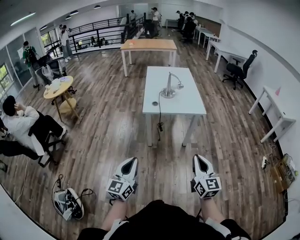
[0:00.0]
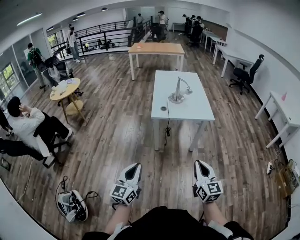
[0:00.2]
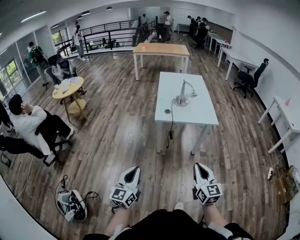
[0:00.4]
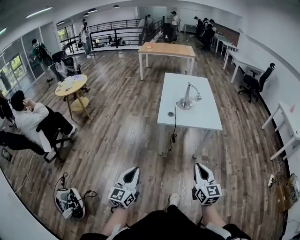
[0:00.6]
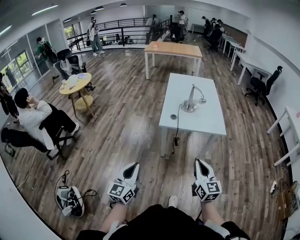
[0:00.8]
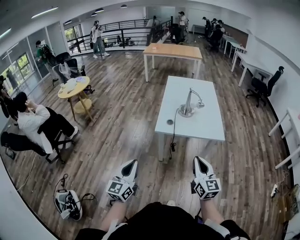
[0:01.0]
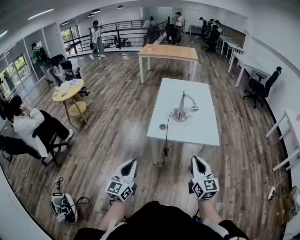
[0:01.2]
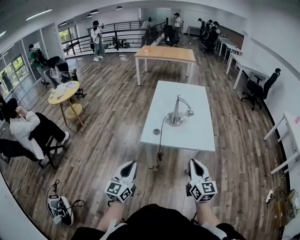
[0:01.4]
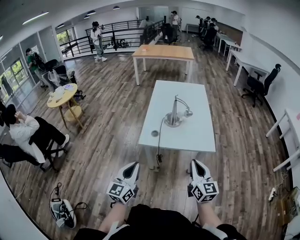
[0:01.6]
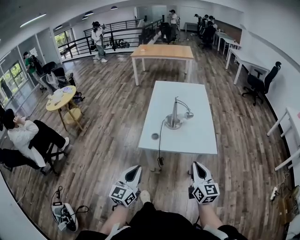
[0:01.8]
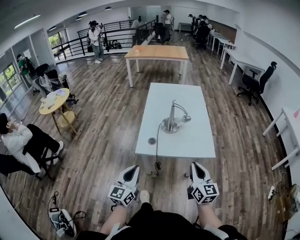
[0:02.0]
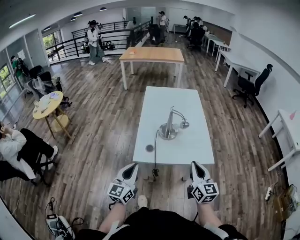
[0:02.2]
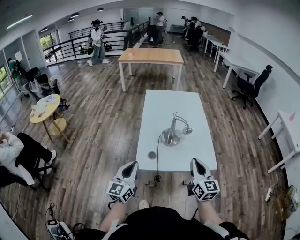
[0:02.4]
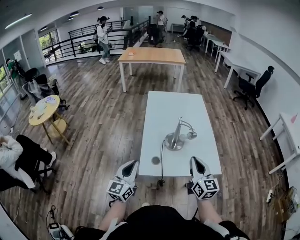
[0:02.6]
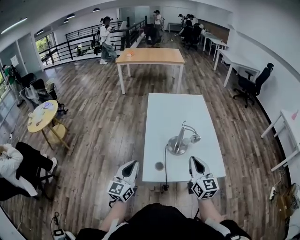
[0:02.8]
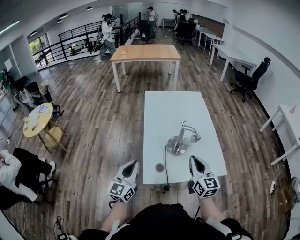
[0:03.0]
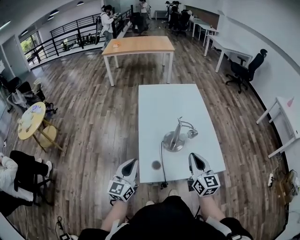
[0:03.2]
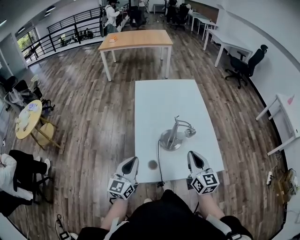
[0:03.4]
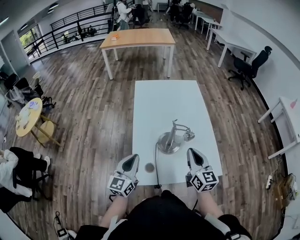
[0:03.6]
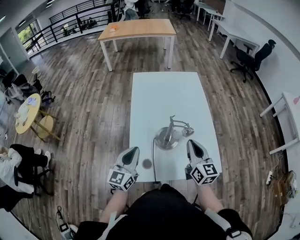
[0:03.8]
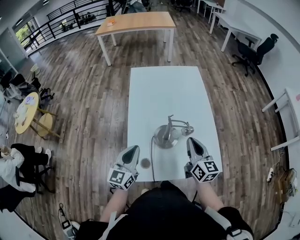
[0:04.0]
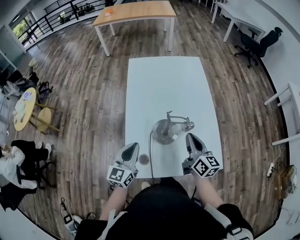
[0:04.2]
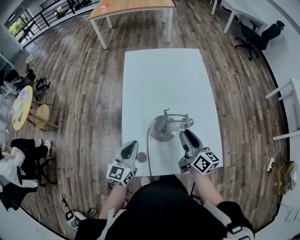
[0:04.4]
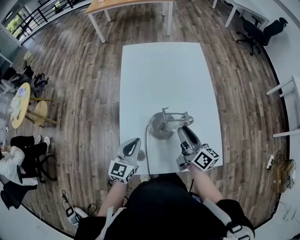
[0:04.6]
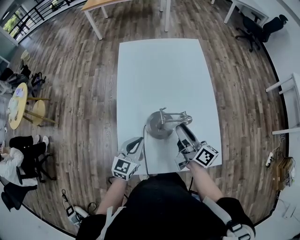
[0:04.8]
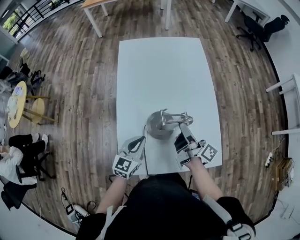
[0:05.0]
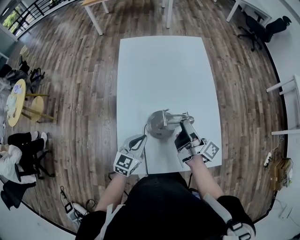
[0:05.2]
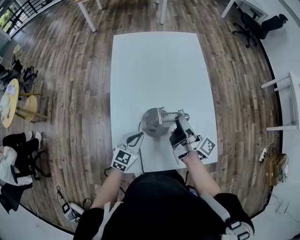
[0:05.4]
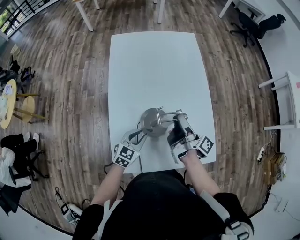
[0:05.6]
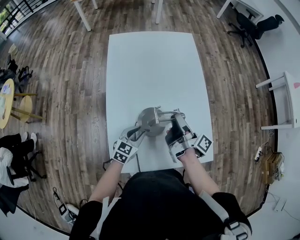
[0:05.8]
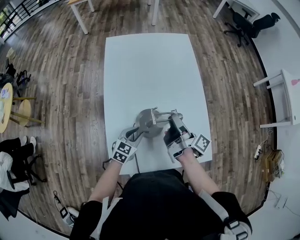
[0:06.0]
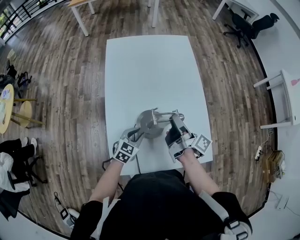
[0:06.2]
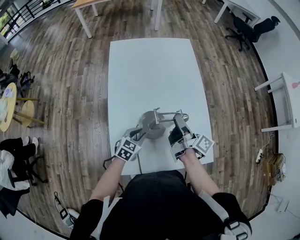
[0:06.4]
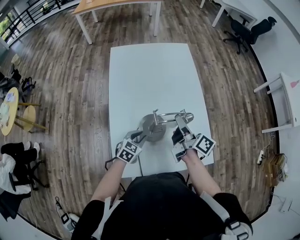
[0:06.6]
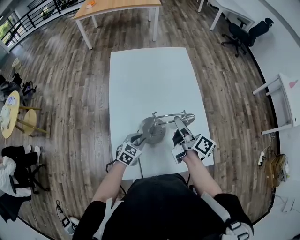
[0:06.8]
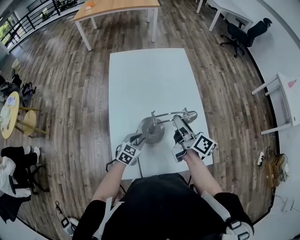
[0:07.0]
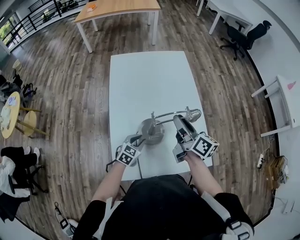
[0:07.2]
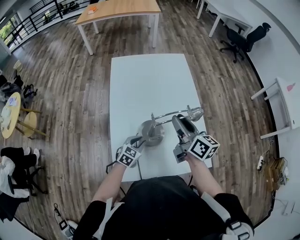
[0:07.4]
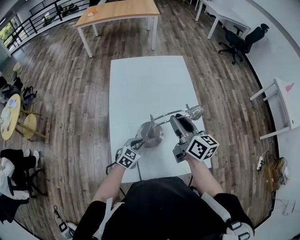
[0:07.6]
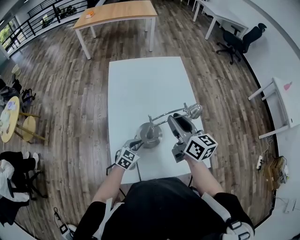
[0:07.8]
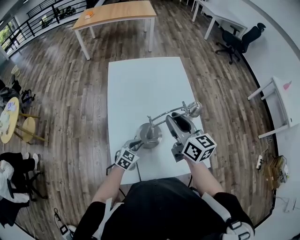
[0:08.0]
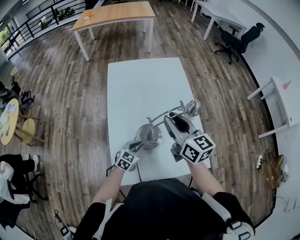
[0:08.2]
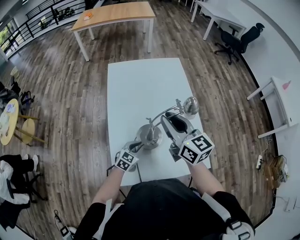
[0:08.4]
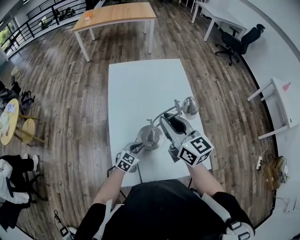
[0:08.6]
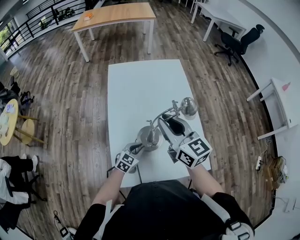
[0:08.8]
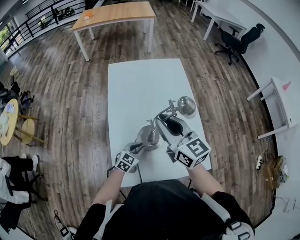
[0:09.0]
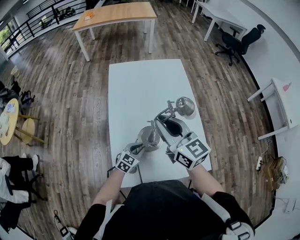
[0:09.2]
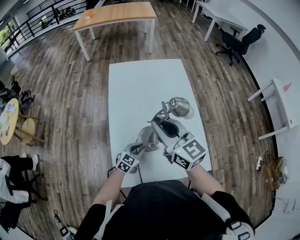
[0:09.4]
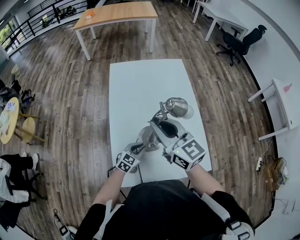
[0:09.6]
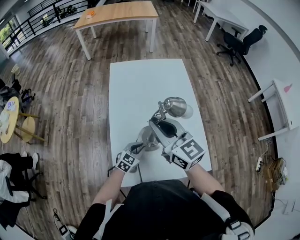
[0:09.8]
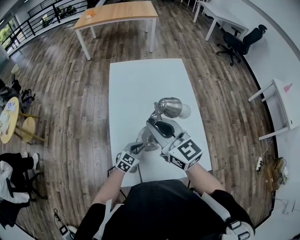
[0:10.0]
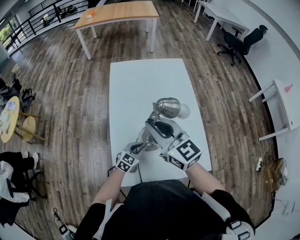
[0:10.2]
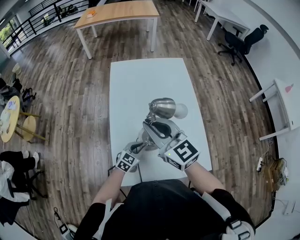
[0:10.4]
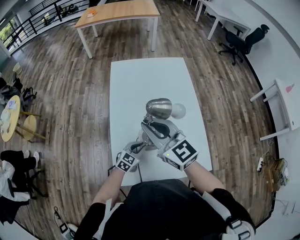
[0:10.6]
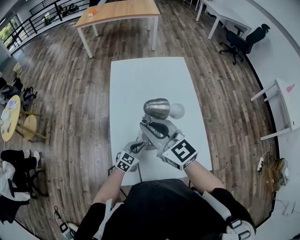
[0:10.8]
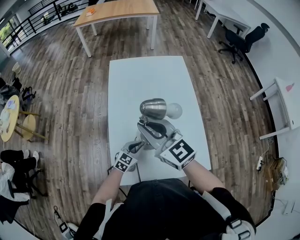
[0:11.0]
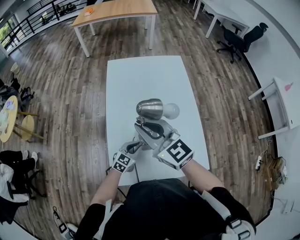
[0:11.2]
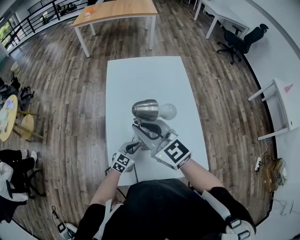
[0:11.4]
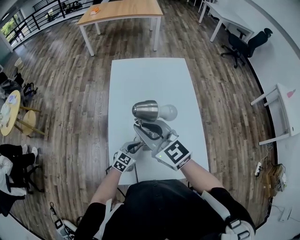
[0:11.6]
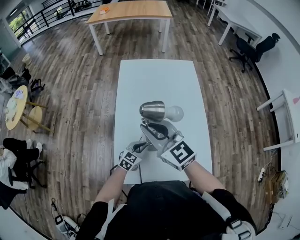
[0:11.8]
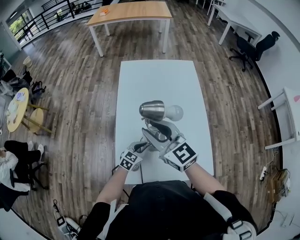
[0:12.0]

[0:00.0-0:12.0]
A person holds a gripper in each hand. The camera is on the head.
0:00.0 to 0:01.6: The grippers both shift forward by about 30 cm.
0:01.6 to 0:03.0: The grippers both shift forward by about 25 cm.
0:03.0 to 0:04.4: The left gripper shifts about 20 cm forward, to the right and downward. Meanwhile the right gripper travels forward and downward by roughly 15 cm, swivels roughly 30 degrees, and opens up.
0:04.4 to 0:06.0: The left gripper shifts about 15 cm downward and to the right, changes its angle by roughly 30 degrees, and opens its fingers. The right gripper travels forward by about 5 cm, and twists approximately 50 degrees clockwise, seen from behind.
0:06.0 to 0:07.6: The right gripper shifts roughly 10 cm upward, and rotates around the line of its fingers by roughly 60 degrees, counterclockwise from behind.
0:07.6 to 0:09.0: The right gripper goes roughly 10 cm to the left and upward, and rotates some 30 degrees.
0:09.0 to 0:10.4: The right gripper heads to the left, covering approximately 5 cm.
0:10.4 to 0:12.0: The grippers move only a little.

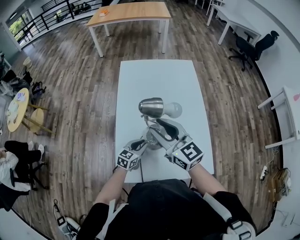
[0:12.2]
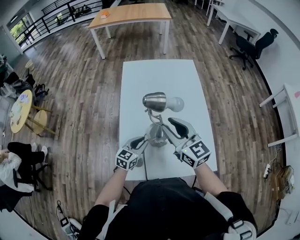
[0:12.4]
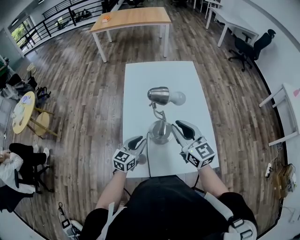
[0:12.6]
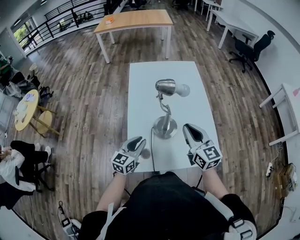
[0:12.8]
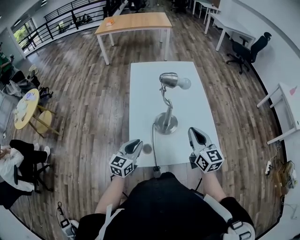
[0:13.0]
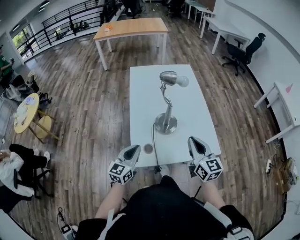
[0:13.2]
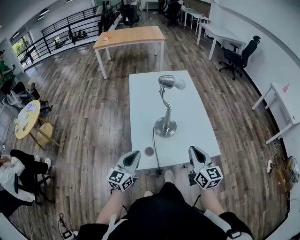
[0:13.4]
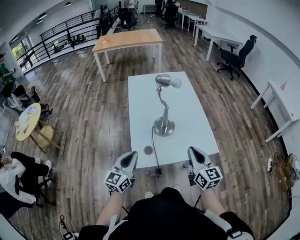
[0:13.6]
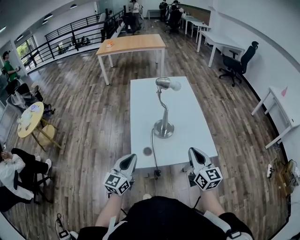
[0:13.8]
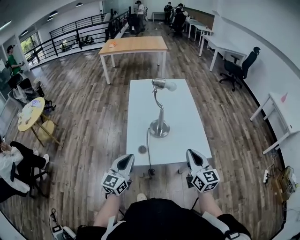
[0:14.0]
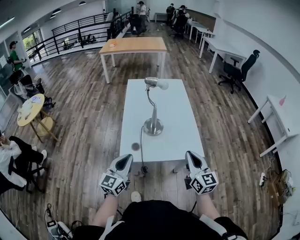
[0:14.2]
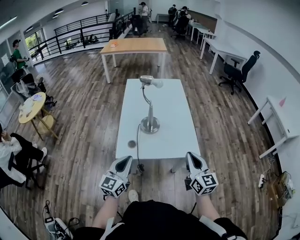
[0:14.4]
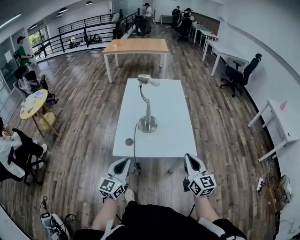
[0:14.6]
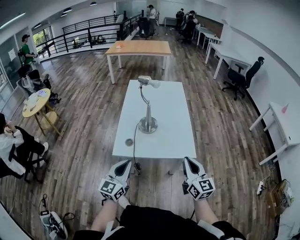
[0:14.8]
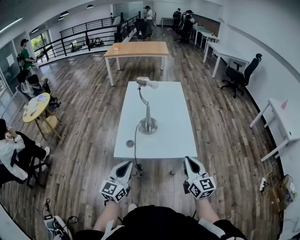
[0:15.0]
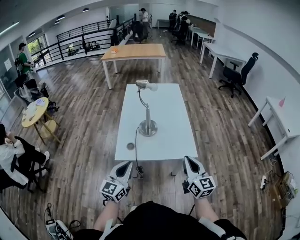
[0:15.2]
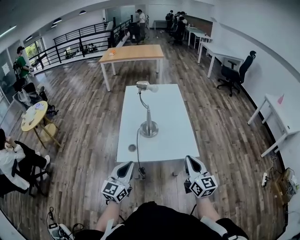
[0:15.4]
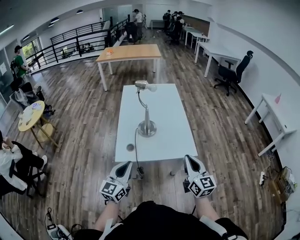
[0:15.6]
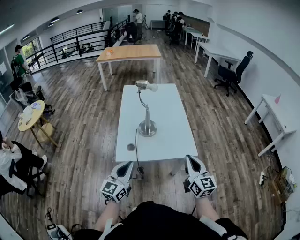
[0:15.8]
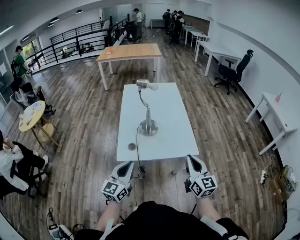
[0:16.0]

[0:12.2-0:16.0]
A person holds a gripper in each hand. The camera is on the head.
0:12.2 to 0:13.4: The left gripper shifts some 25 cm backward, upward and to the left, and turns by some 20 degrees. Meanwhile the right gripper heads backward and to the right, covering roughly 25 cm, turns by approximately 30 degrees, and closes.
0:13.4 to 0:14.8: The left gripper heads backward and to the right, covering some 20 cm, while the right gripper goes approximately 15 cm to the right and backward.
0:14.8 to 0:16.0: There are only small adjustments of the grippers.

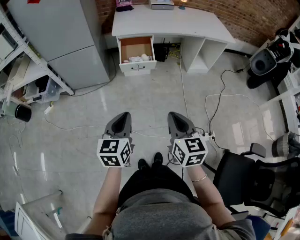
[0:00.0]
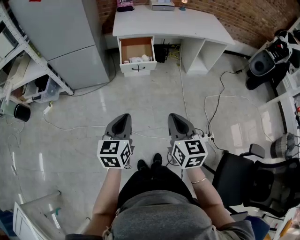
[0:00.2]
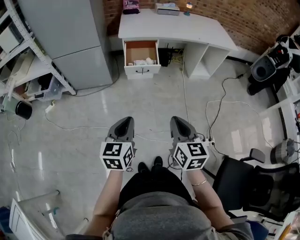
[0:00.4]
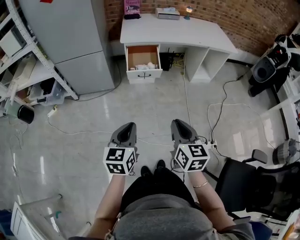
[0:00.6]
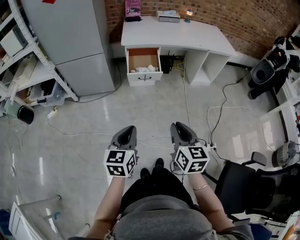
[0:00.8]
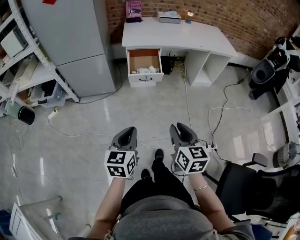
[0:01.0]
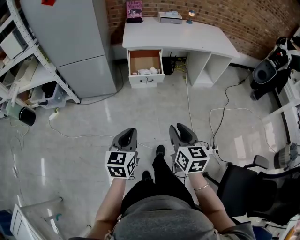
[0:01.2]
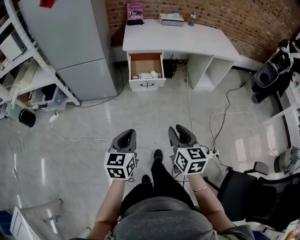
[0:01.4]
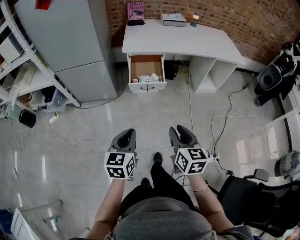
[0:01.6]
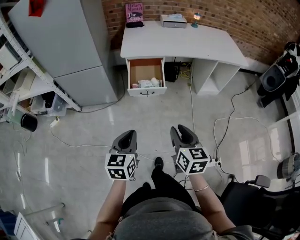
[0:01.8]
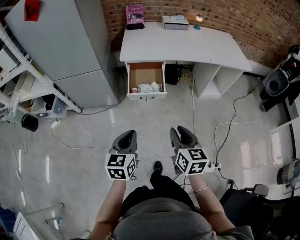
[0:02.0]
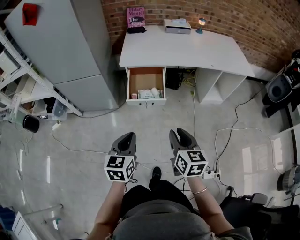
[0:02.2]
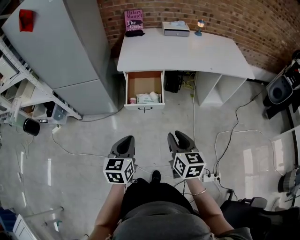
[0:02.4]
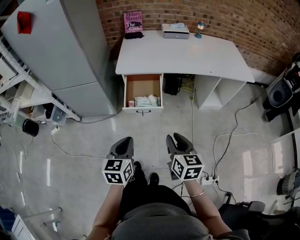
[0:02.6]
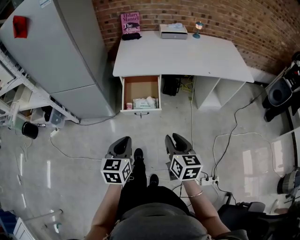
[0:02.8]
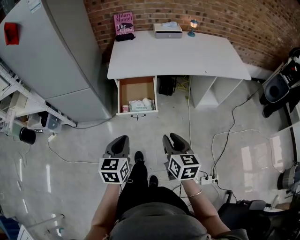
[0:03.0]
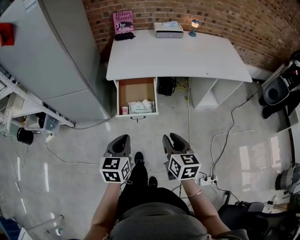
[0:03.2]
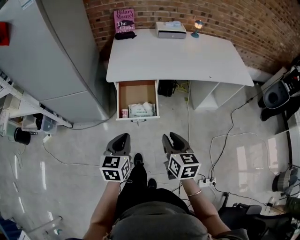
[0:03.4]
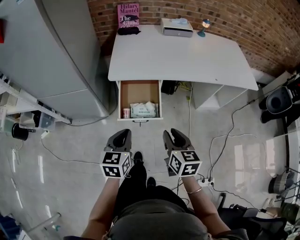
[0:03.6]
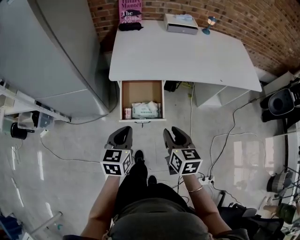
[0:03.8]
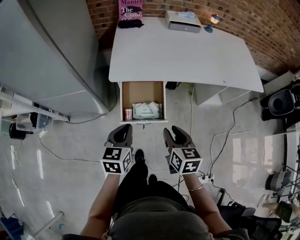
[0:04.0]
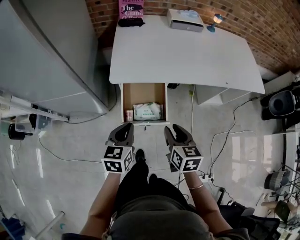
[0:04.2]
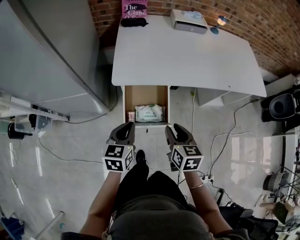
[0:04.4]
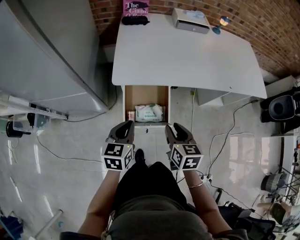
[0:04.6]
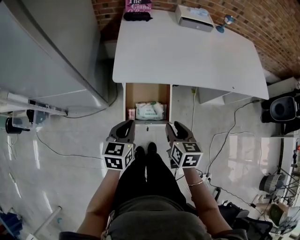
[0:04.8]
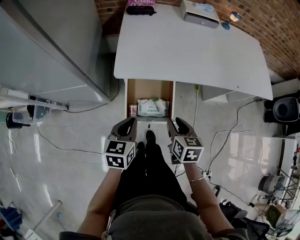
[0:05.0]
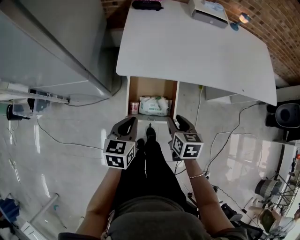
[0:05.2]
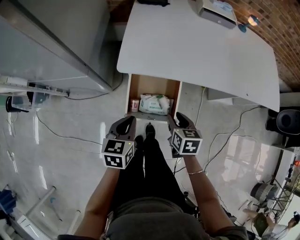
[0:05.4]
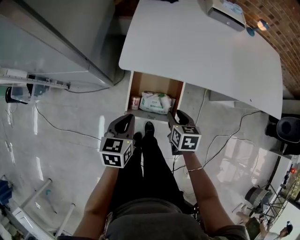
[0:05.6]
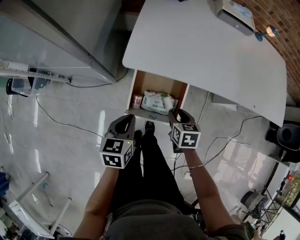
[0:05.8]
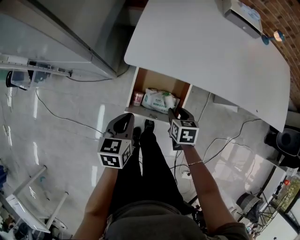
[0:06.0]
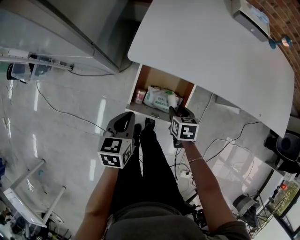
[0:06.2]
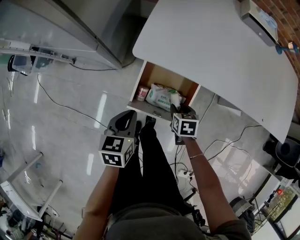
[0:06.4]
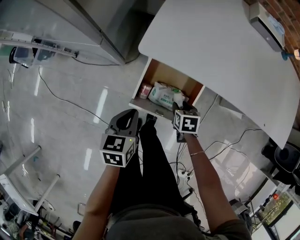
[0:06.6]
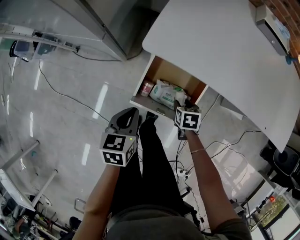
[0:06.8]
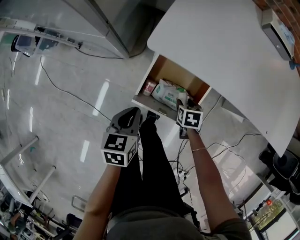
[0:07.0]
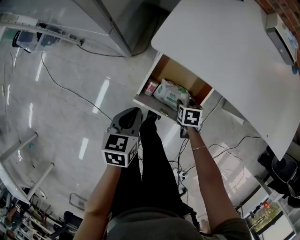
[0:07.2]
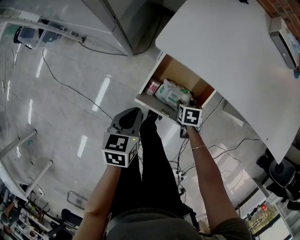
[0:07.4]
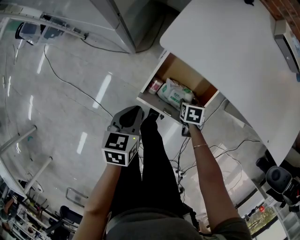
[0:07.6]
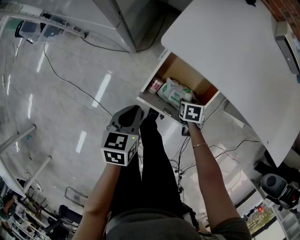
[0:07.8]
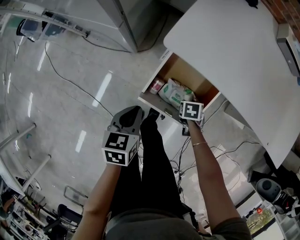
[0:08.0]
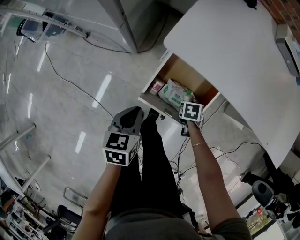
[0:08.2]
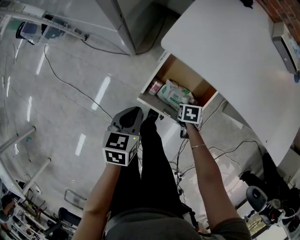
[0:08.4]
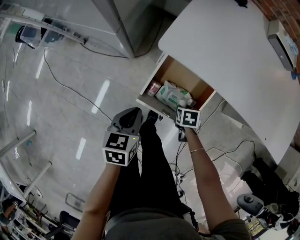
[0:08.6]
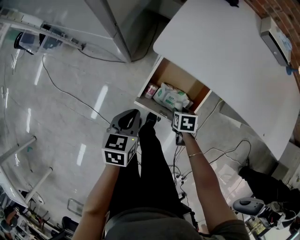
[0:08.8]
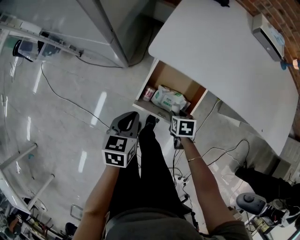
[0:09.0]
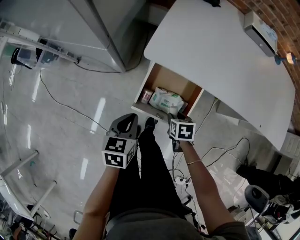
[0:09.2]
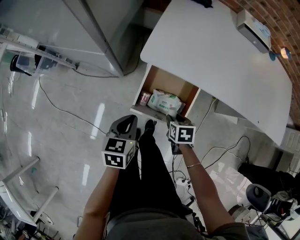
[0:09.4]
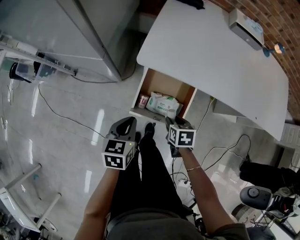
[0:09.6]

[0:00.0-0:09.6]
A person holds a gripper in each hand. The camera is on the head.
0:00.0 to 0:01.6: Both grippers travel together forward, about 10 cm. The right gripper opens its fingers.
0:01.6 to 0:03.2: Both grippers travel together forward, about 25 cm.
0:03.2 to 0:04.8: The two grippers go roughly 20 cm forward.
0:04.8 to 0:06.4: The right gripper moves downward and forward, roughly 20 cm, and swivels approximately 30 degrees; the left gripper travels downward by approximately 10 cm, and rotates roughly 20 degrees.
0:06.4 to 0:08.0: The right gripper is displaced downward by about 10 cm, and turns by some 20 degrees, while the left gripper changes place by roughly 5 cm.
0:08.0 to 0:09.6: The right gripper moves upward, some 15 cm, and turns by about 20 degrees; the left gripper shifts some 5 cm upward.
